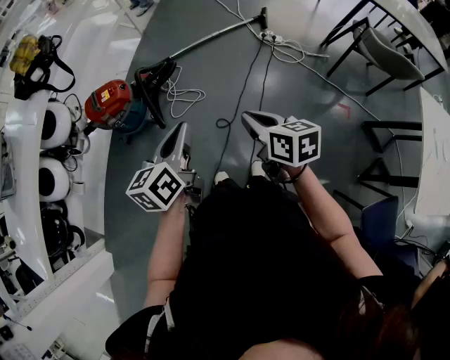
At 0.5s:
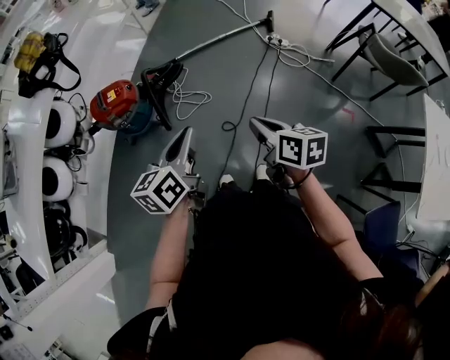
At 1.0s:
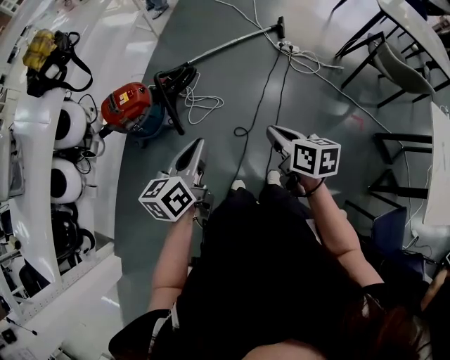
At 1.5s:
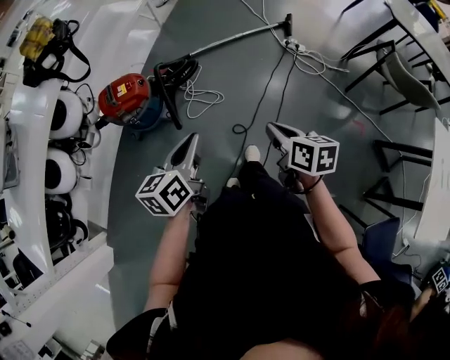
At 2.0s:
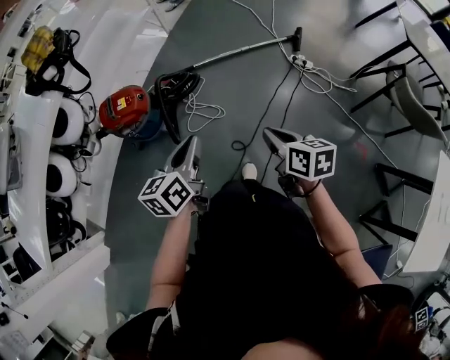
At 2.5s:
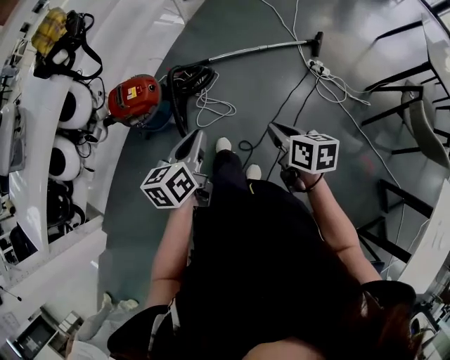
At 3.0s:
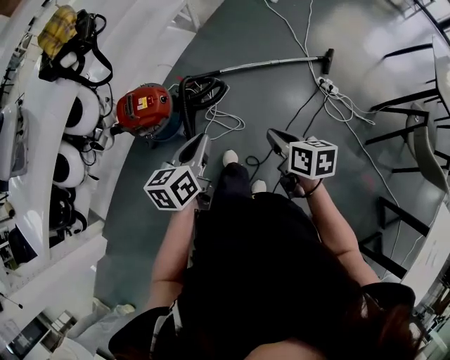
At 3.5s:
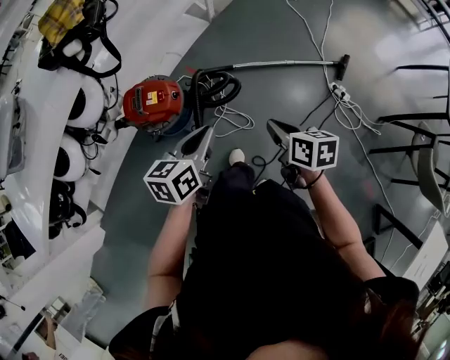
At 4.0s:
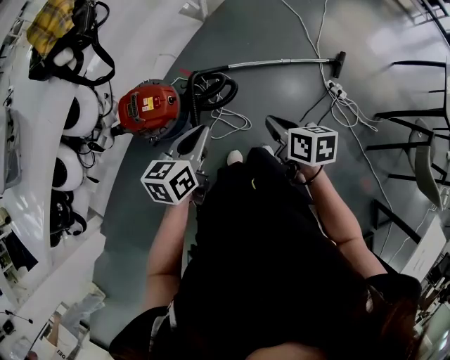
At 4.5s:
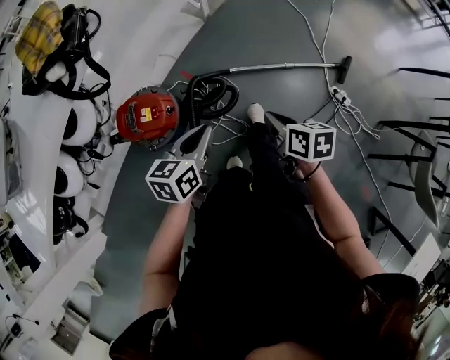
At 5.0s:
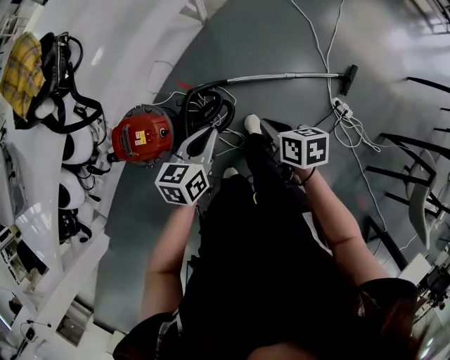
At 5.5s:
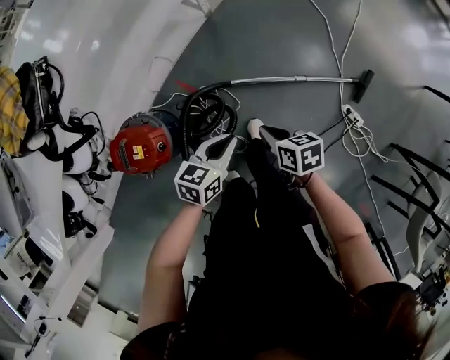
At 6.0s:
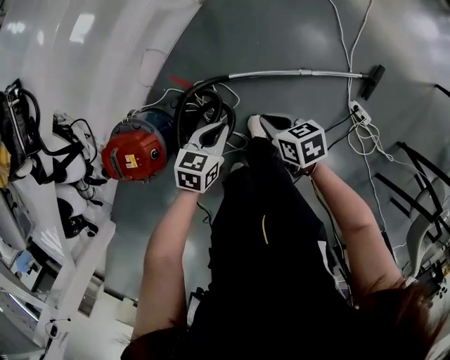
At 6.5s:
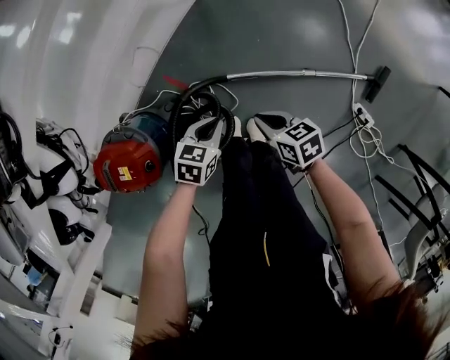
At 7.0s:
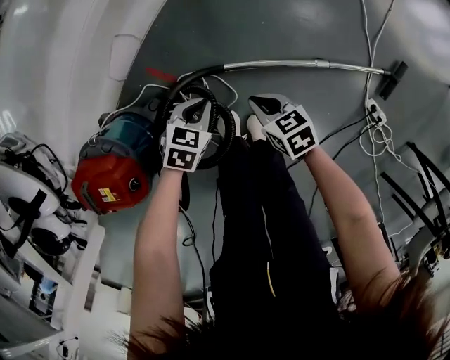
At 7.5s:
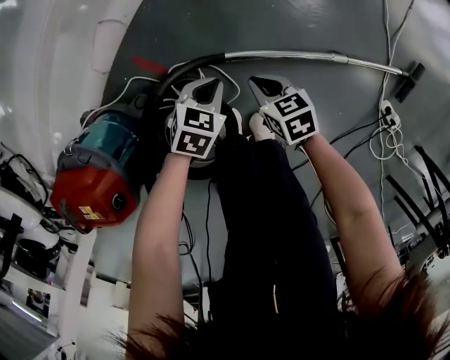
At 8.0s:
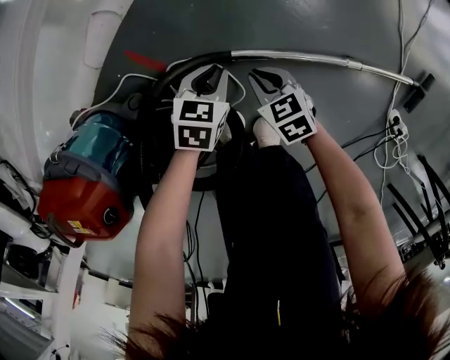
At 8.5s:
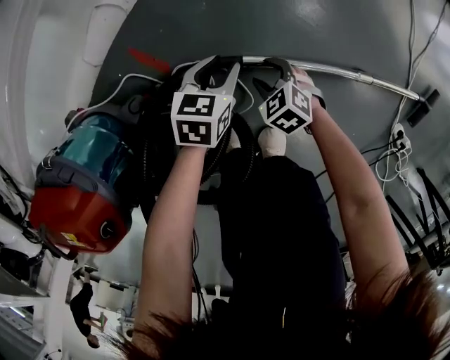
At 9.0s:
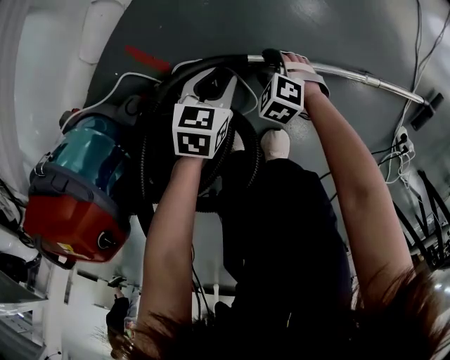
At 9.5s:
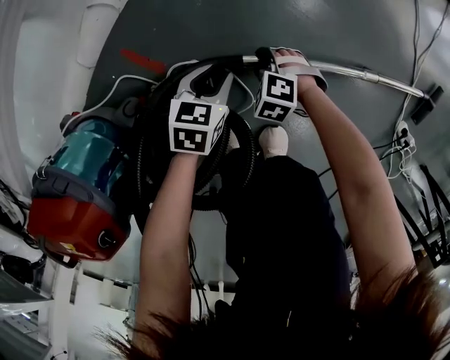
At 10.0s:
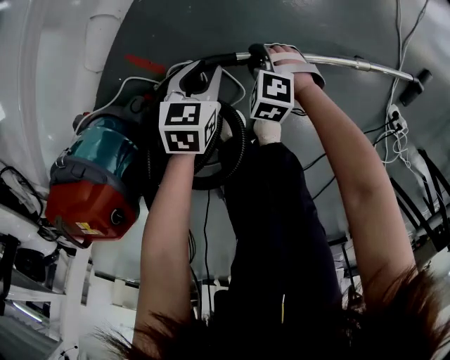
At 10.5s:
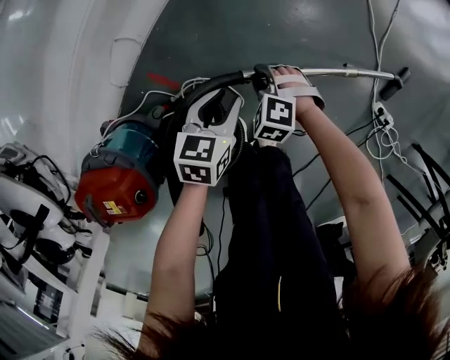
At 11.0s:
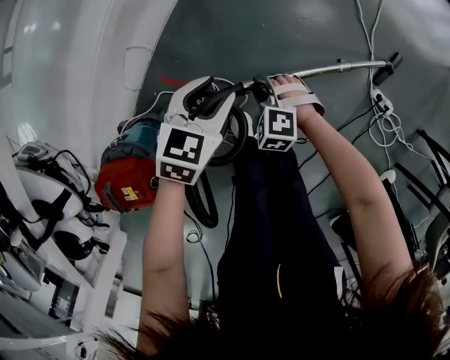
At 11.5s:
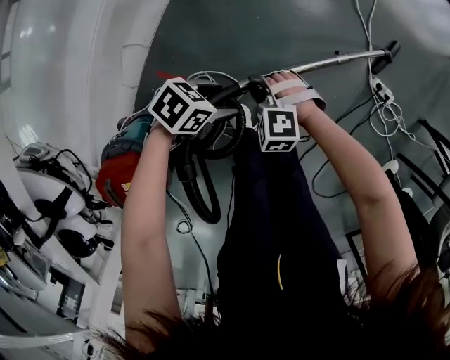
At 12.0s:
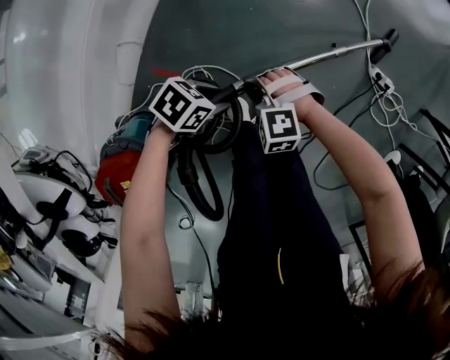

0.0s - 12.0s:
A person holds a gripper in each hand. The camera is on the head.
0.0s - 2.0s: The right gripper moves roughly 15 cm.
2.0s - 4.0s: The right gripper moves about 30 cm.
4.0s - 6.0s: The right gripper shifts by about 40 cm, and swivels about 20 degrees.
6.0s - 8.0s: The right gripper heads downward, covering about 40 cm, and rotates about 30 degrees.
8.0s - 10.0s: The right gripper moves about 10 cm downward and comes back, twists about 40 degrees counterclockwise, seen from behind, and opens its fingers.
10.0s - 12.0s: The right gripper is displaced upward by approximately 25 cm.

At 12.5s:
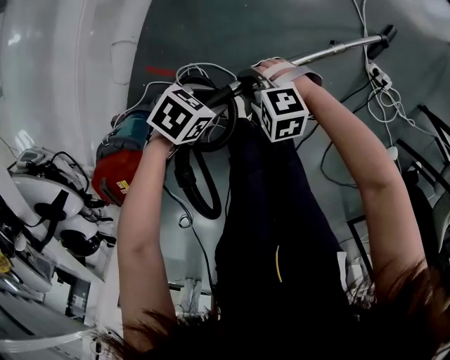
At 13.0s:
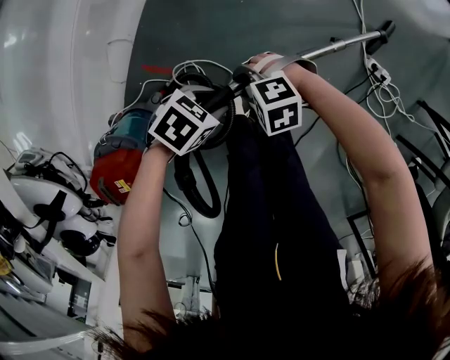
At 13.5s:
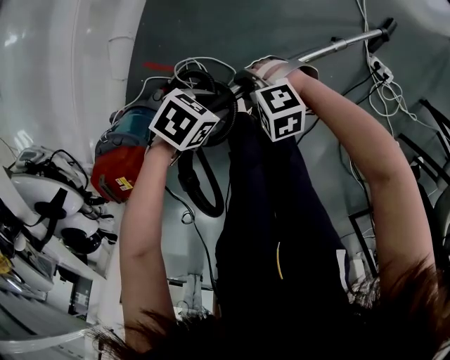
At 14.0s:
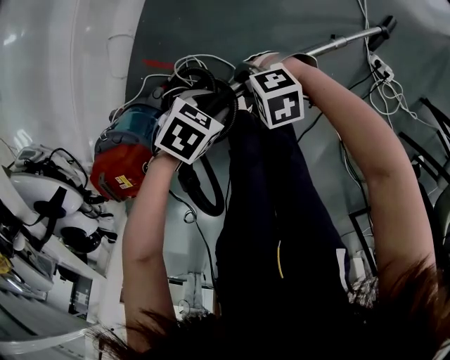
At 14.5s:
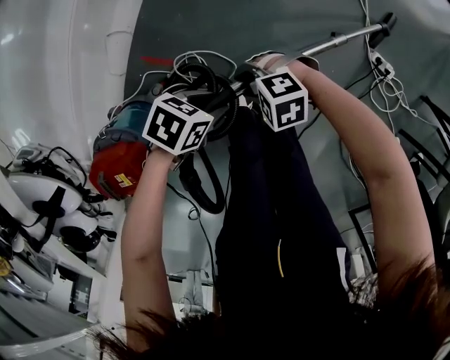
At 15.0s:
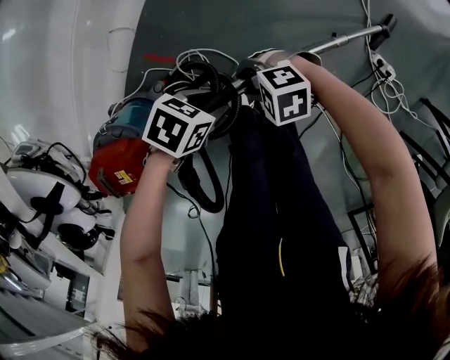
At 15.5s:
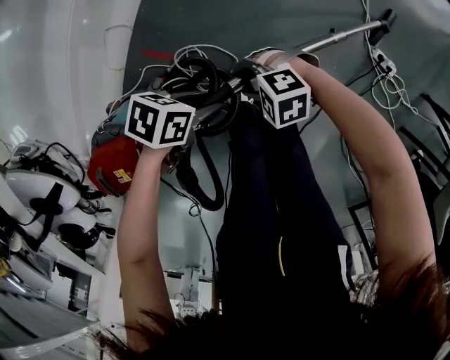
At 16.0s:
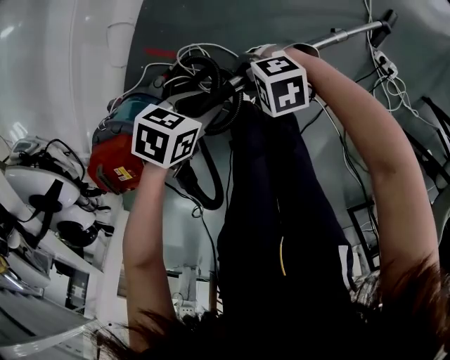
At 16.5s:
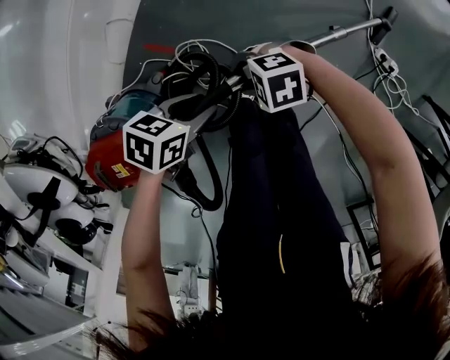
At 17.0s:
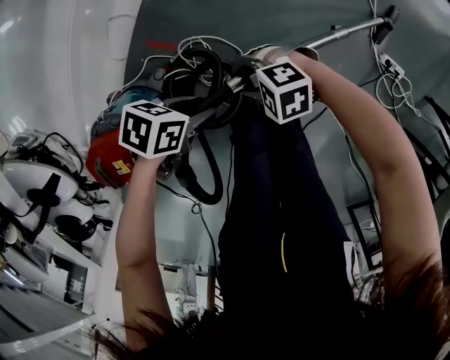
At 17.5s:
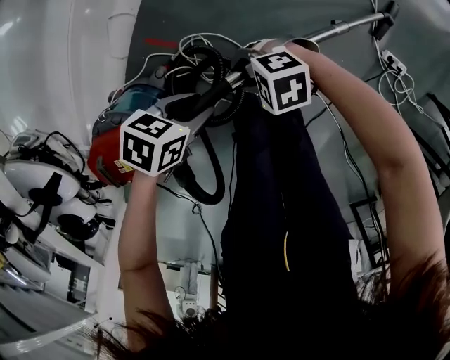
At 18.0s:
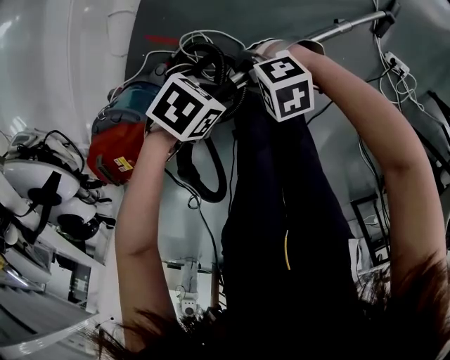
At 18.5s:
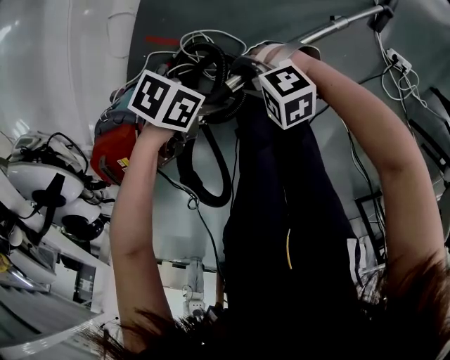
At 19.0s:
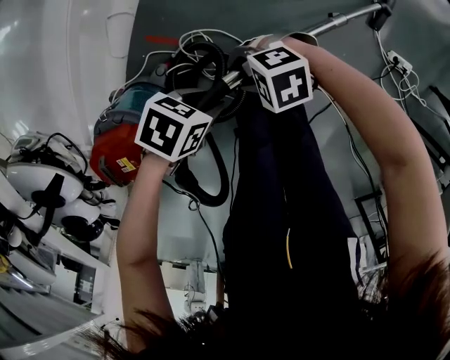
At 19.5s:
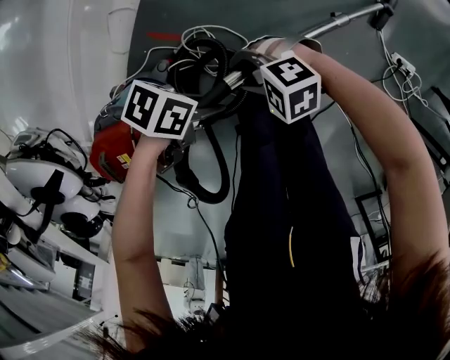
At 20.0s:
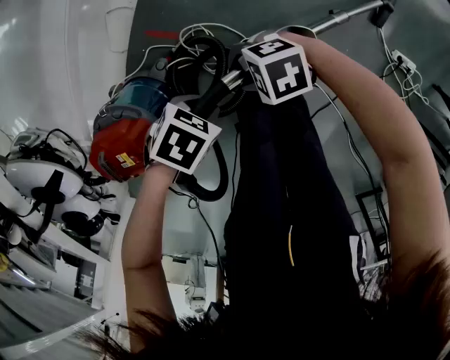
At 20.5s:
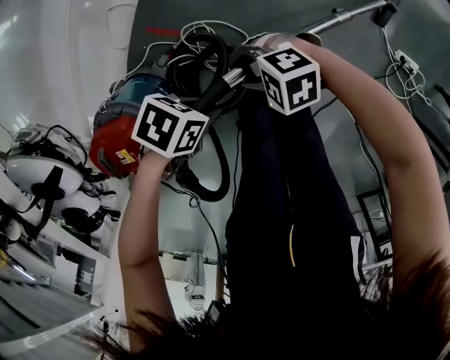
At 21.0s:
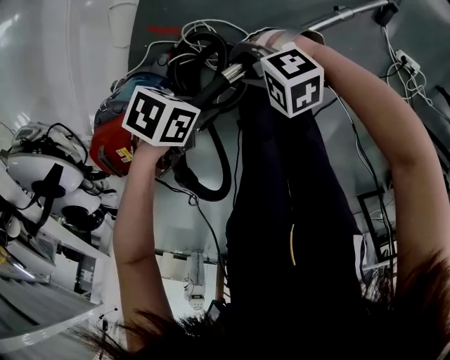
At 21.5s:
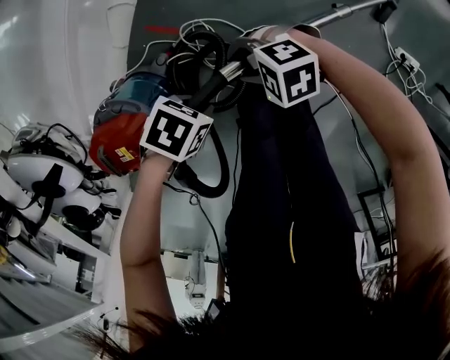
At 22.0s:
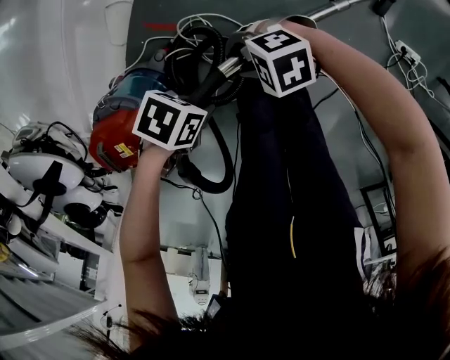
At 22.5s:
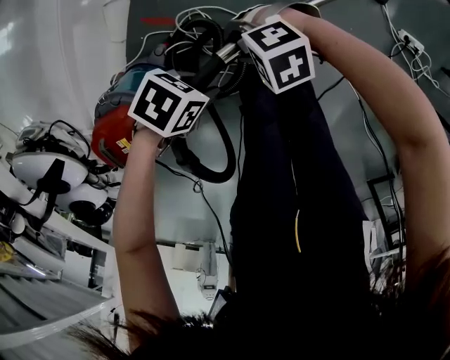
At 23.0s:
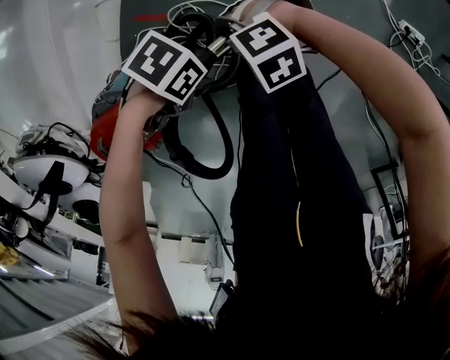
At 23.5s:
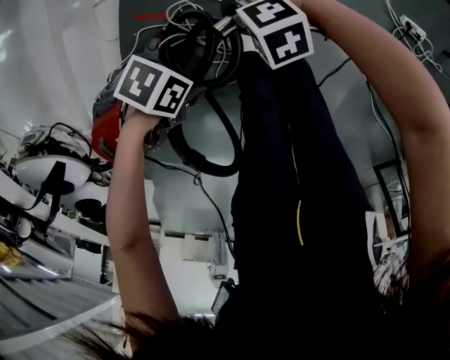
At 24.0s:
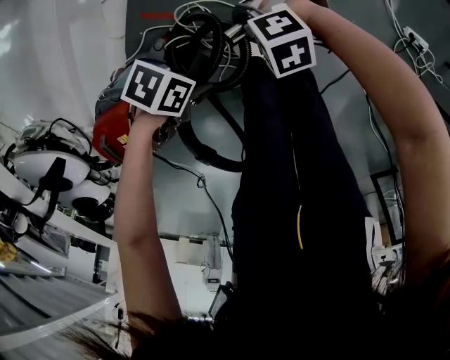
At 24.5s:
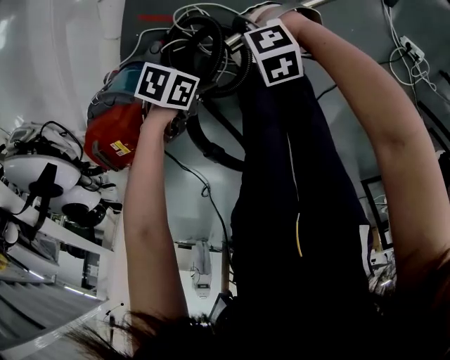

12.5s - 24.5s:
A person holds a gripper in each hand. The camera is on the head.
22.5s - 24.5s: The right gripper is displaced downward by roughly 10 cm.

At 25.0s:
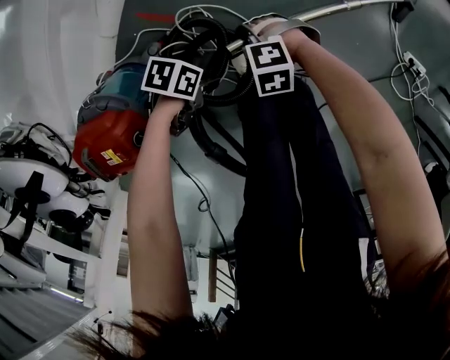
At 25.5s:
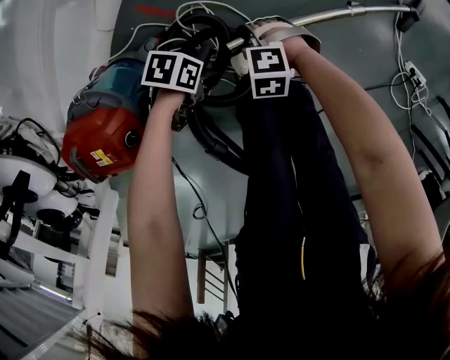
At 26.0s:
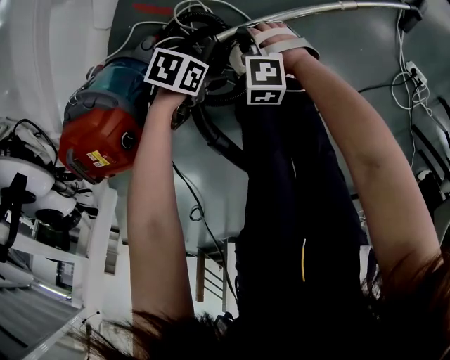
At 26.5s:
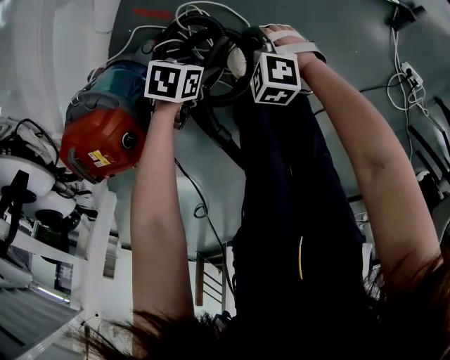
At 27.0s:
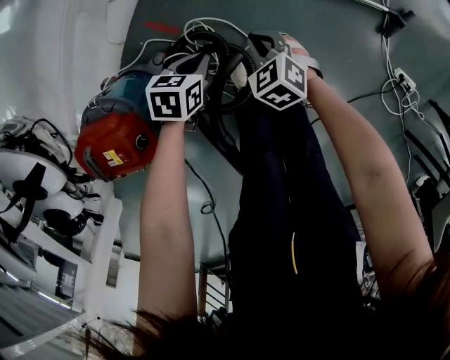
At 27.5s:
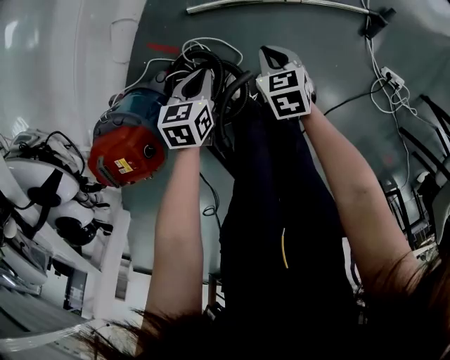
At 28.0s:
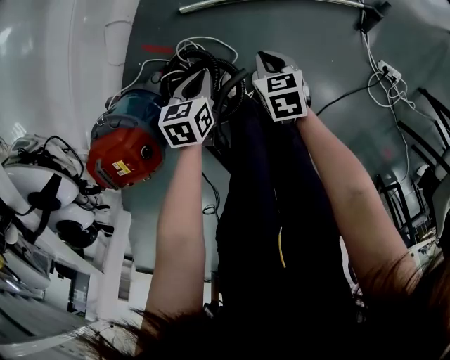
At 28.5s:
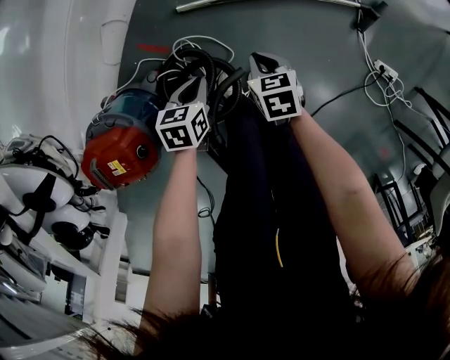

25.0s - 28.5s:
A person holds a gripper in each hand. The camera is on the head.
25.0s - 27.0s: The right gripper ends up approximately 10 cm from where it was, turns by about 50 degrees, and closes up.
27.0s - 28.5s: The right gripper shifts by some 5 cm, and changes its angle by roughly 40 degrees.
